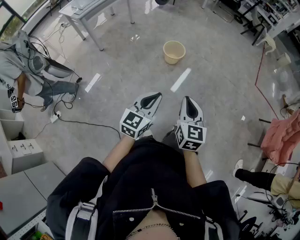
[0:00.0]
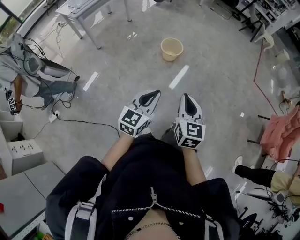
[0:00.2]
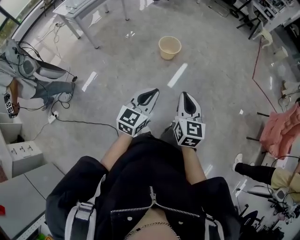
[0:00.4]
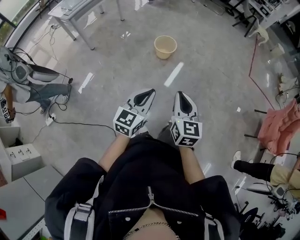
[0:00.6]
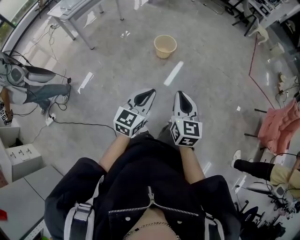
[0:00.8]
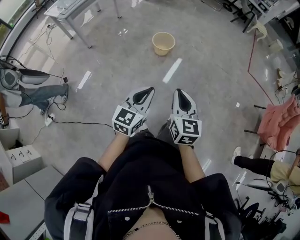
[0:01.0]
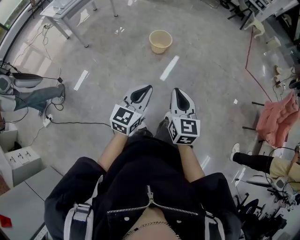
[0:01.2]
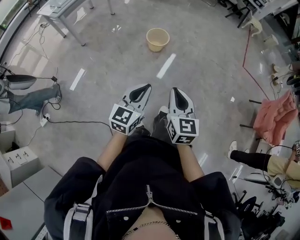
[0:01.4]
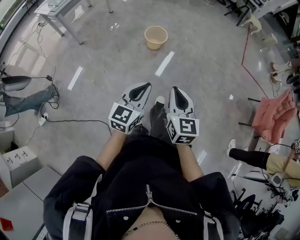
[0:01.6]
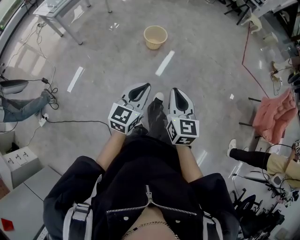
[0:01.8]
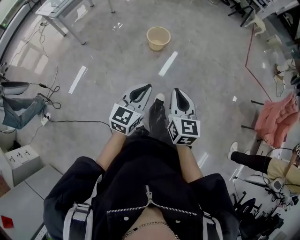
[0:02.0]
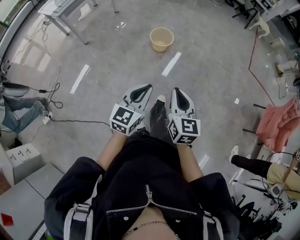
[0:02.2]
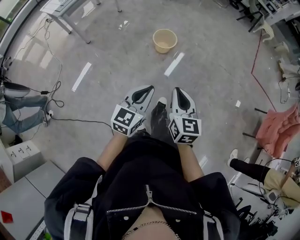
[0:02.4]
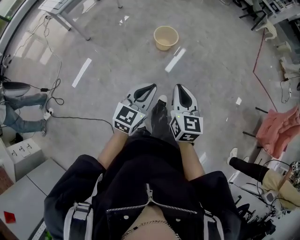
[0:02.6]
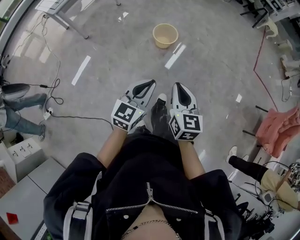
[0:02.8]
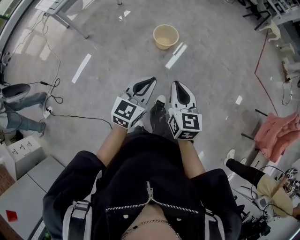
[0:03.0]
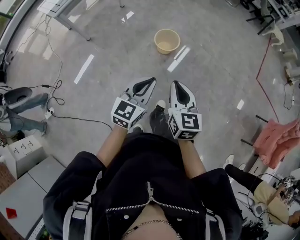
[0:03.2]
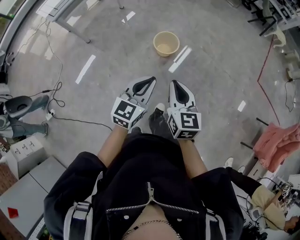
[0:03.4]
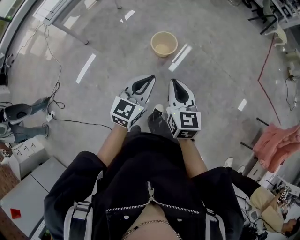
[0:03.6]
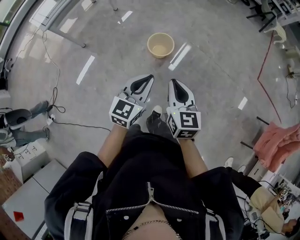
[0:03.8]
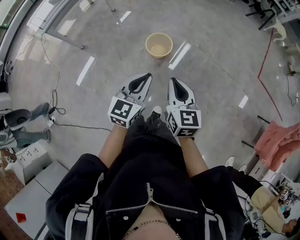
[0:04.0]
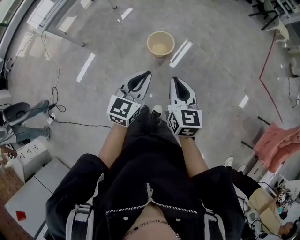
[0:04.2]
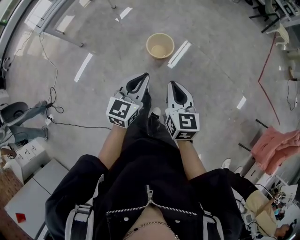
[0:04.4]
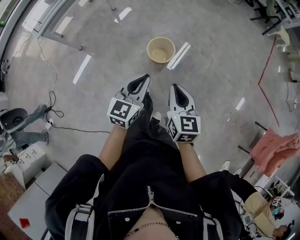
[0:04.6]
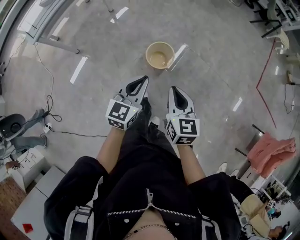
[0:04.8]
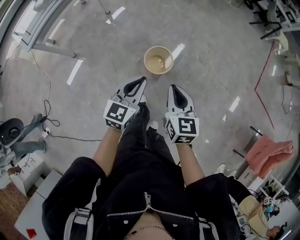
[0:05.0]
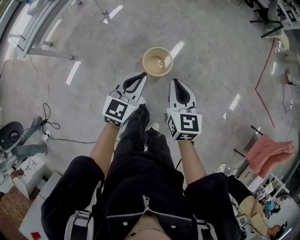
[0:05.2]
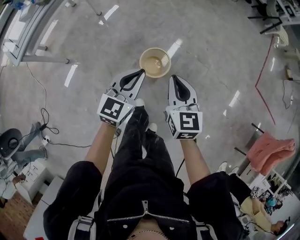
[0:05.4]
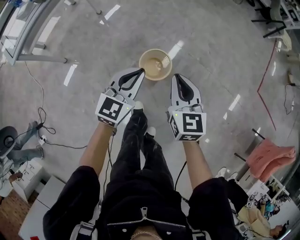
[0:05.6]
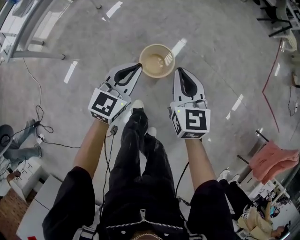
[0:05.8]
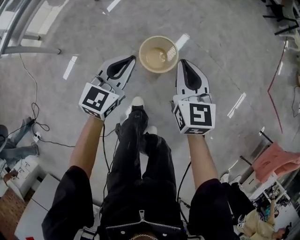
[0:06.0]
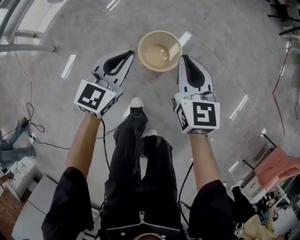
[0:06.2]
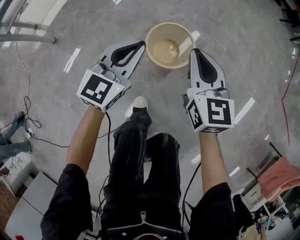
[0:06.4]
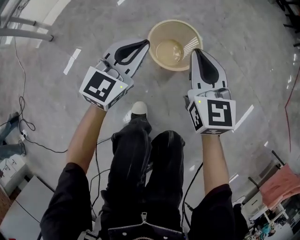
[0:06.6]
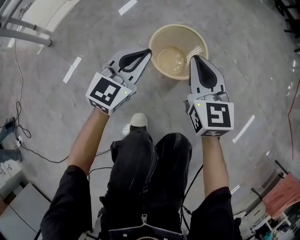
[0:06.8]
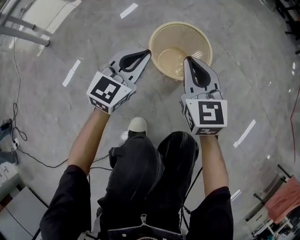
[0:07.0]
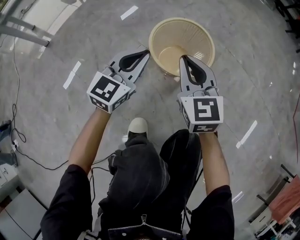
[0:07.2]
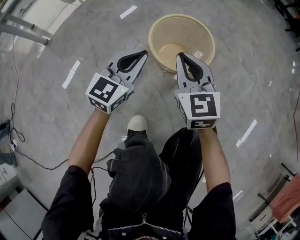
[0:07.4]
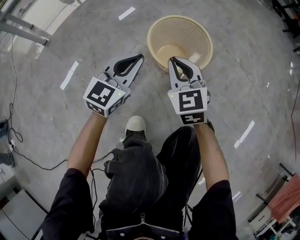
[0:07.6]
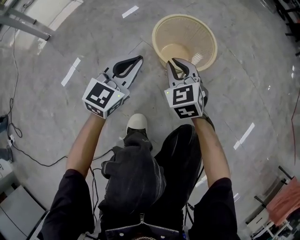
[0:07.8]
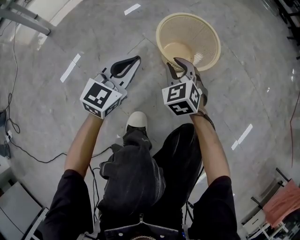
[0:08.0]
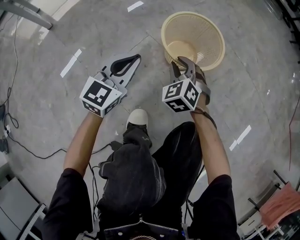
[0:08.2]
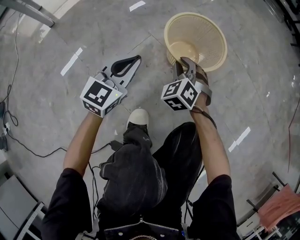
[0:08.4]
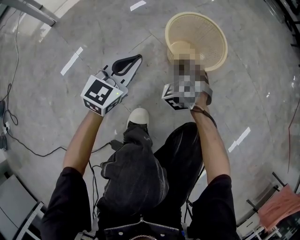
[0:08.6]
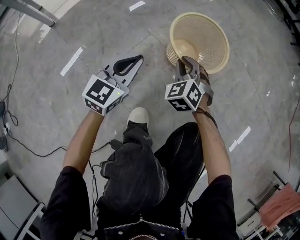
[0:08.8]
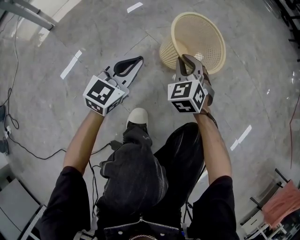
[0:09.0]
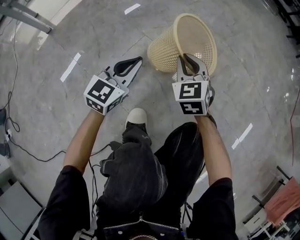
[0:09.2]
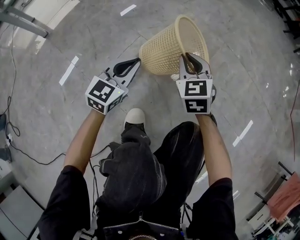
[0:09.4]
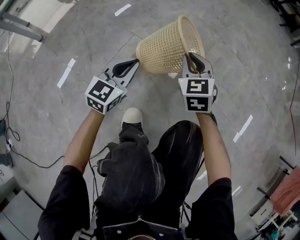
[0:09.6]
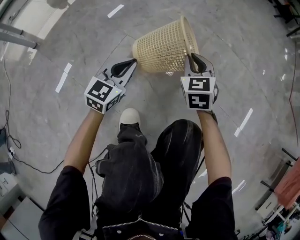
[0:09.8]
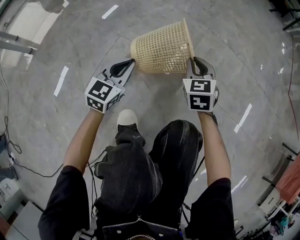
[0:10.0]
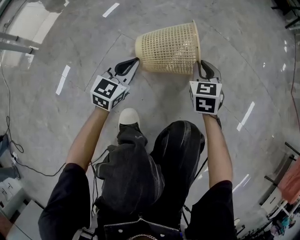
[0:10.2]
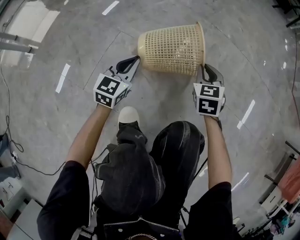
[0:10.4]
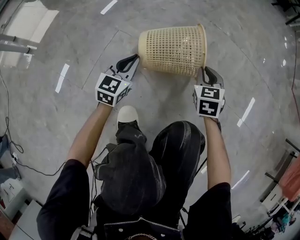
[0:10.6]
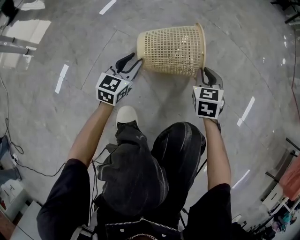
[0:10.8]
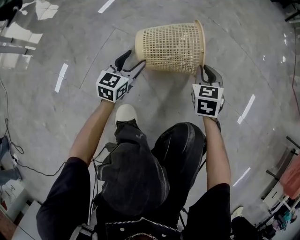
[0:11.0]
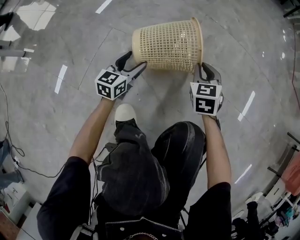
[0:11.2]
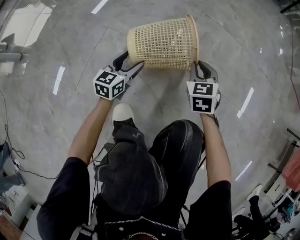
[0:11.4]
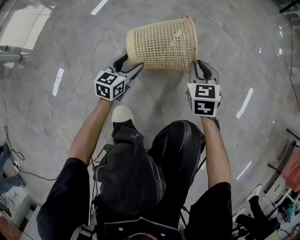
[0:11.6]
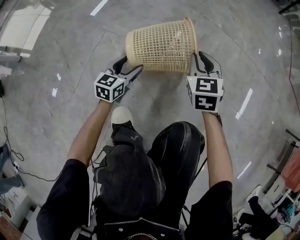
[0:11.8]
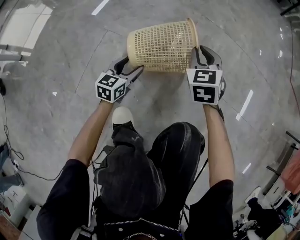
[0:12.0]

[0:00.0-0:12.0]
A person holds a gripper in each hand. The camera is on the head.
0:00.0 to 0:01.6: The grippers stay close to where they were, moving slightly.
0:01.6 to 0:03.0: The grippers both shift forward by about 20 cm.
0:03.0 to 0:04.4: Both grippers travel together forward, some 25 cm.
0:04.4 to 0:06.0: The two grippers go approximately 40 cm forward and downward.
0:06.0 to 0:07.6: Both grippers travel together downward, roughly 40 cm. The right gripper rotates about 30 degrees.
0:07.6 to 0:09.0: The left gripper ends up some 5 cm from where it was, while the right gripper travels downward by some 5 cm, and turns by some 20 degrees.
0:09.0 to 0:10.4: The right gripper moves to the right, some 20 cm, and changes its angle by about 30 degrees; the left gripper goes approximately 10 cm downward and to the right.
0:10.4 to 0:12.0: The left gripper goes approximately 10 cm downward, and opens up.

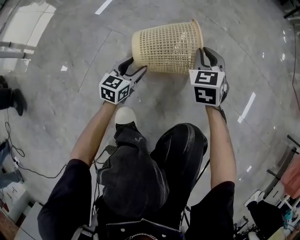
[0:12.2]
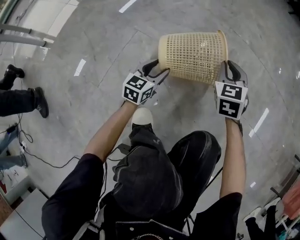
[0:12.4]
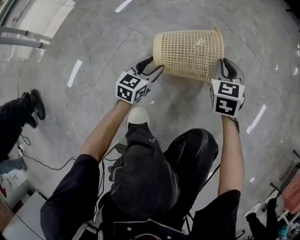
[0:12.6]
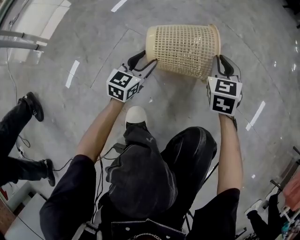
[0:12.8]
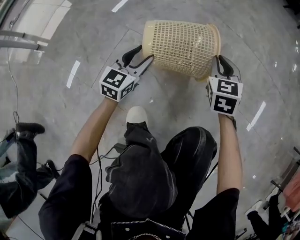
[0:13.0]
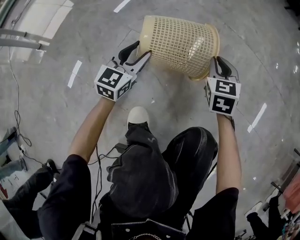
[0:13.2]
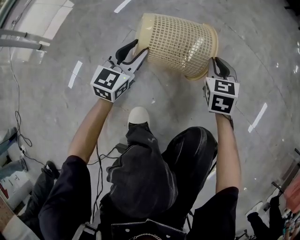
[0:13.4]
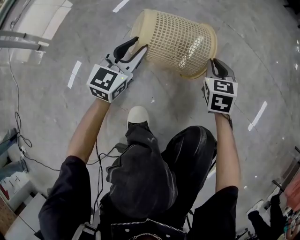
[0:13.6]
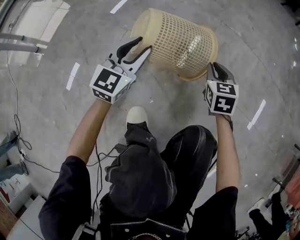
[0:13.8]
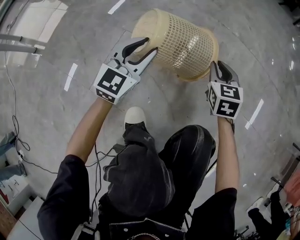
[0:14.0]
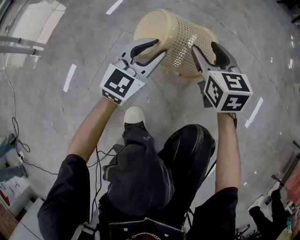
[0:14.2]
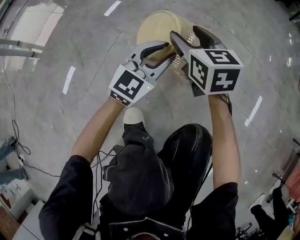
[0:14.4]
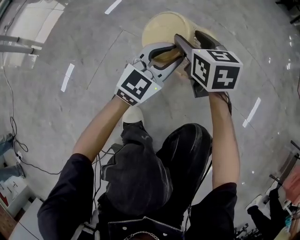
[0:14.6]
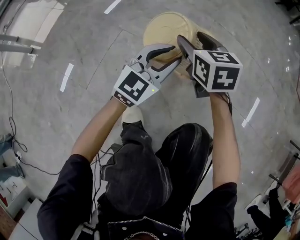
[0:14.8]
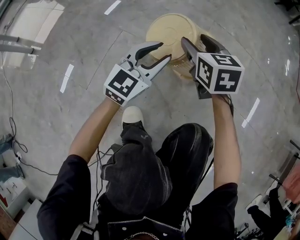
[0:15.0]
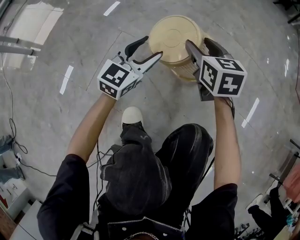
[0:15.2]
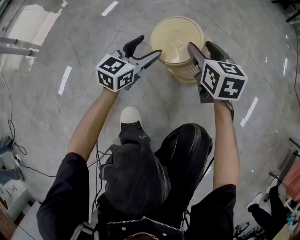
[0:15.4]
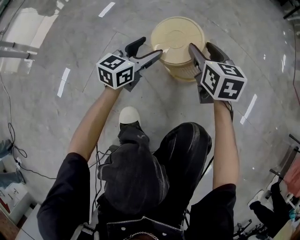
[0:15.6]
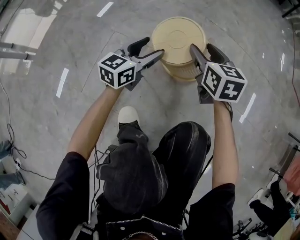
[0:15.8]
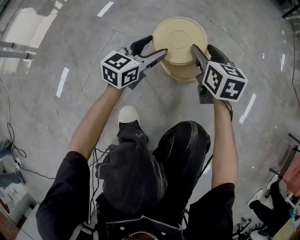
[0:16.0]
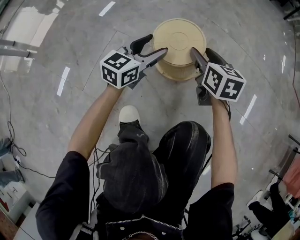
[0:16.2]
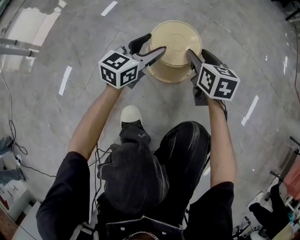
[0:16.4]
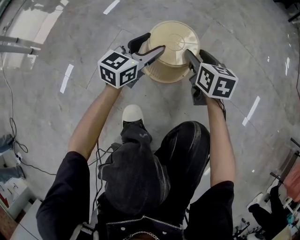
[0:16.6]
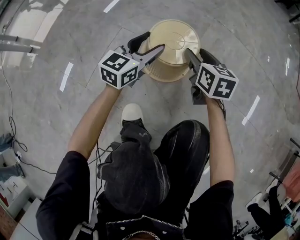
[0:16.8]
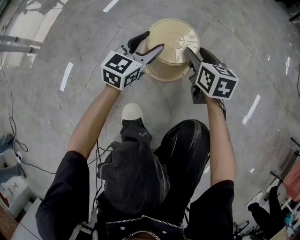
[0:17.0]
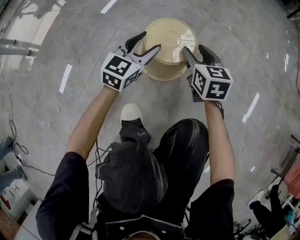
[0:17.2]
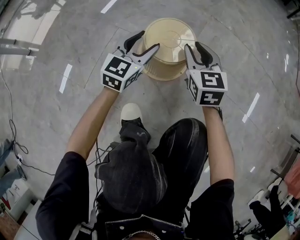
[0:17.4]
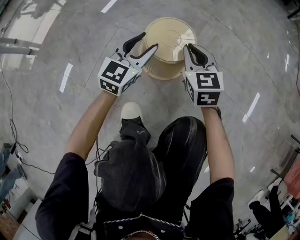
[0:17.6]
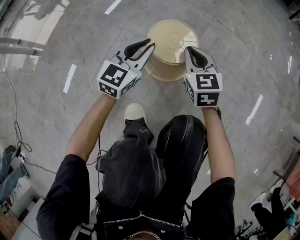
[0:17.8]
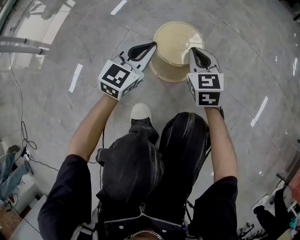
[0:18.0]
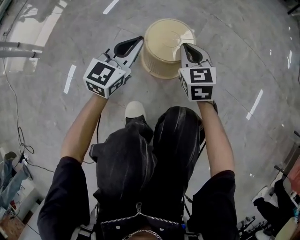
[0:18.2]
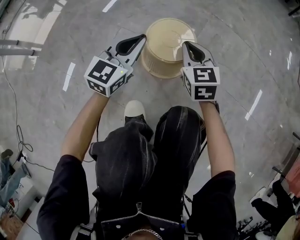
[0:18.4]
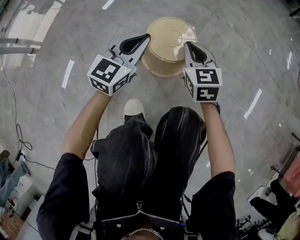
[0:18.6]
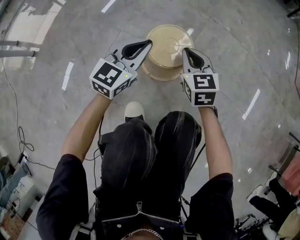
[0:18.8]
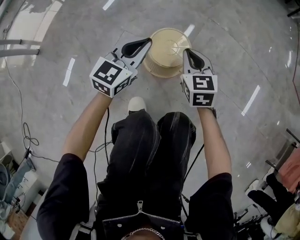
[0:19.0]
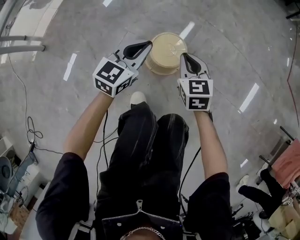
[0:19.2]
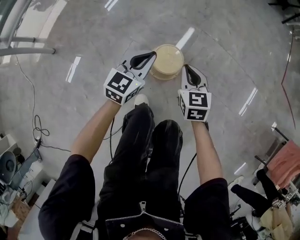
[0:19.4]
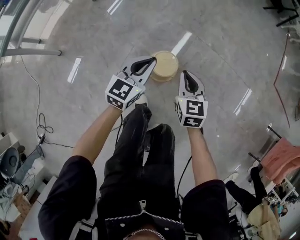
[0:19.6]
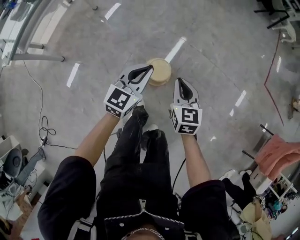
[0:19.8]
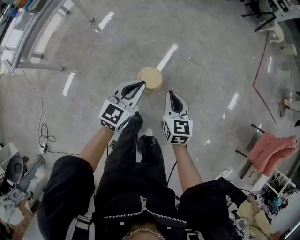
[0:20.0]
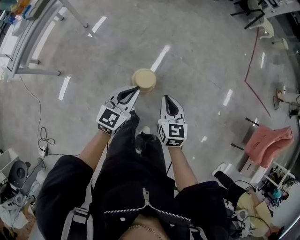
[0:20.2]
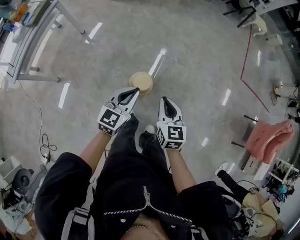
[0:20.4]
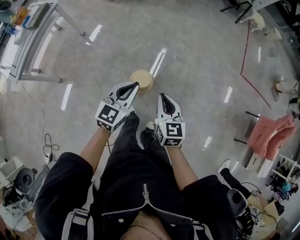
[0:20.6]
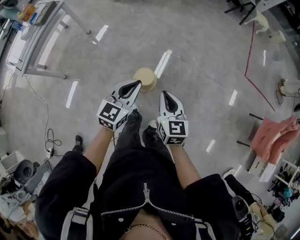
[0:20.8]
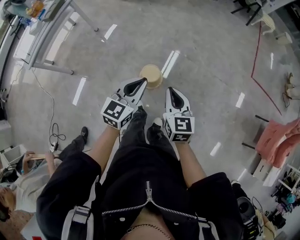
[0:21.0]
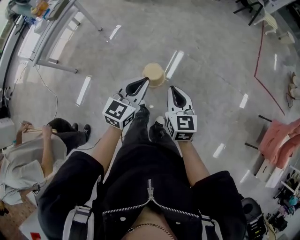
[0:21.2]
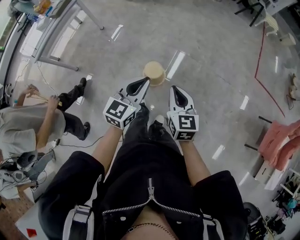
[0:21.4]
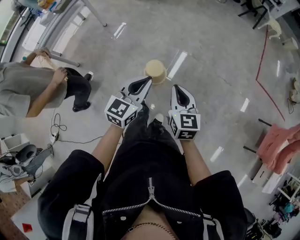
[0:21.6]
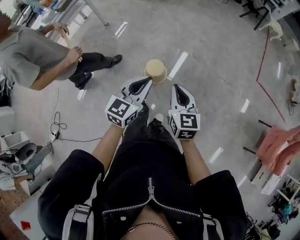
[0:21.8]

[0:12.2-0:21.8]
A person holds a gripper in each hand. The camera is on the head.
0:12.2 to 0:13.8: The right gripper moves approximately 5 cm; the left gripper moves upward, some 15 cm, changes its angle by some 30 degrees, and closes.
0:13.8 to 0:15.4: The left gripper moves to the right, some 5 cm, and opens its fingers, while the right gripper moves upward, approximately 10 cm, moves approximately 15 cm to the left and comes back, and opens up.
0:15.4 to 0:17.0: The right gripper heads downward, covering some 5 cm.
0:17.0 to 0:18.6: The left gripper moves upward, some 5 cm, and closes up, while the right gripper turns by roughly 20 degrees, and closes.
0:18.6 to 0:20.2: Both grippers travel together upward, some 70 cm.
0:20.2 to 0:21.8: Both grippers move to the right, backward and upward, approximately 20 cm.

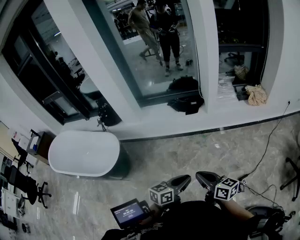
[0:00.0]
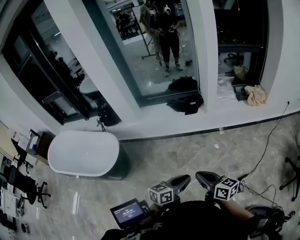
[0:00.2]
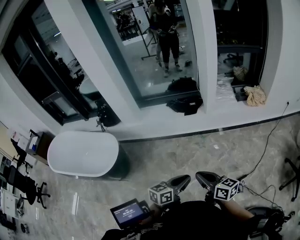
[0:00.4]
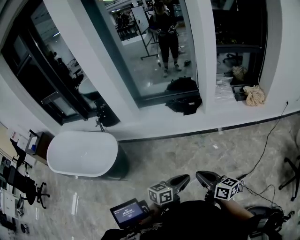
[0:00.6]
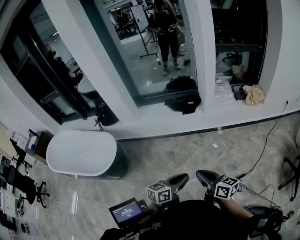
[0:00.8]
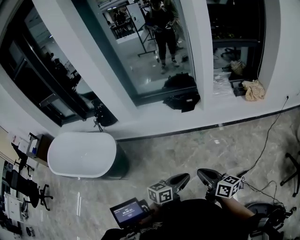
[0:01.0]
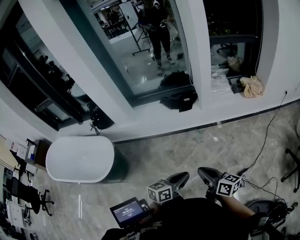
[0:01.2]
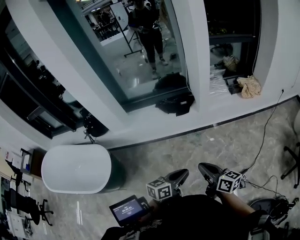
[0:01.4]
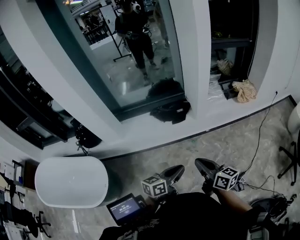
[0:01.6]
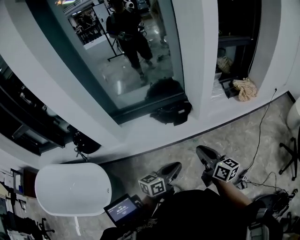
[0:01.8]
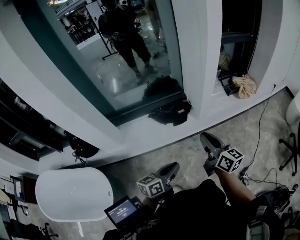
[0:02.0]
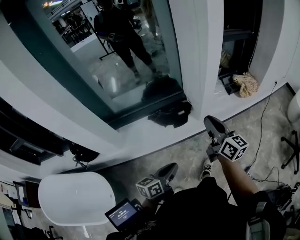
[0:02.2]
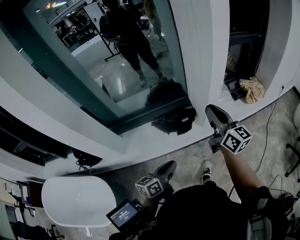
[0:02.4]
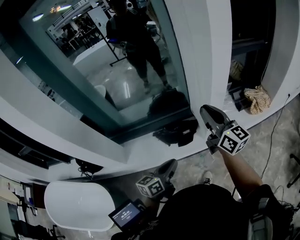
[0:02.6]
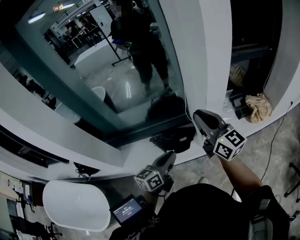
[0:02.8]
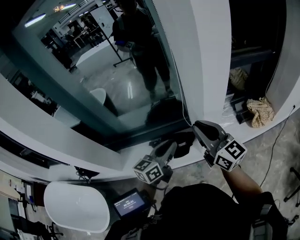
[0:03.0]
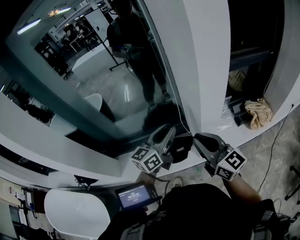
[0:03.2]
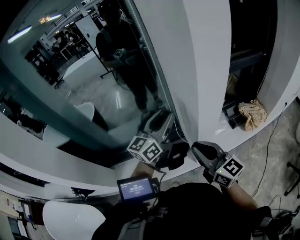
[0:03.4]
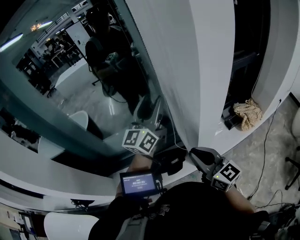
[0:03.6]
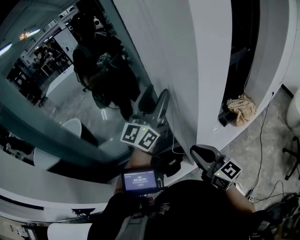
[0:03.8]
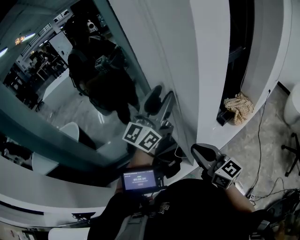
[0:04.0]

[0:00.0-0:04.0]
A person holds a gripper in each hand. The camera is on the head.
0:00.0 to 0:01.4: The grippers both shift forward by approximately 10 cm.
0:01.4 to 0:02.6: Both grippers move forward, about 40 cm. The right gripper swivels approximately 30 degrees.
0:02.6 to 0:04.0: The right gripper shifts some 5 cm forward, while the left gripper goes some 50 cm forward, upward and to the right, tilts its fingers some 40 degrees upward, and opens up.
